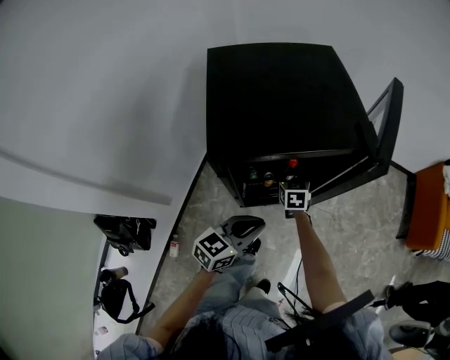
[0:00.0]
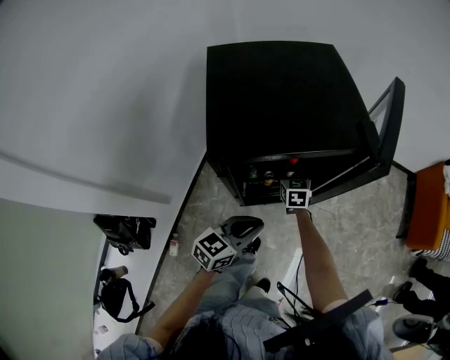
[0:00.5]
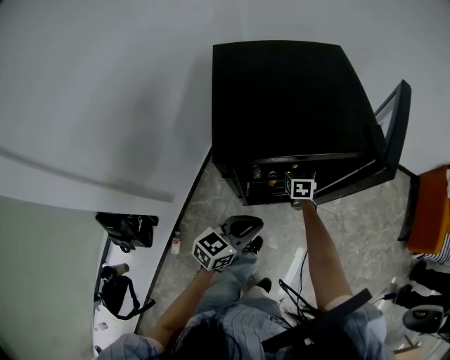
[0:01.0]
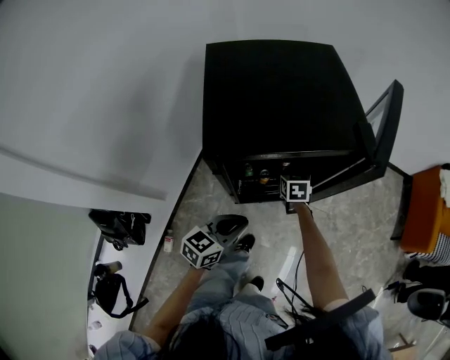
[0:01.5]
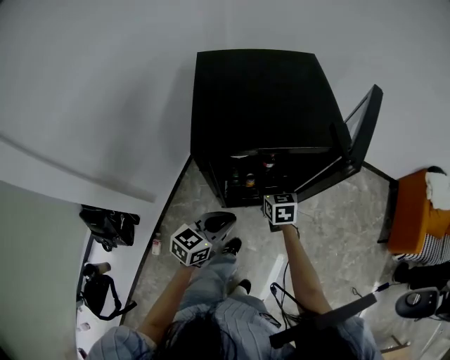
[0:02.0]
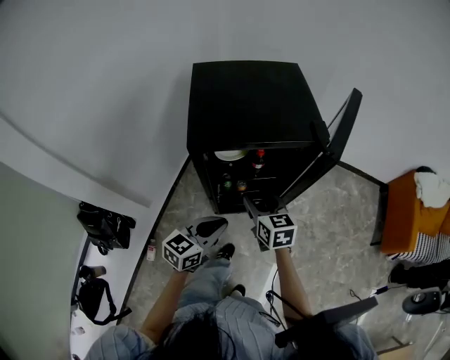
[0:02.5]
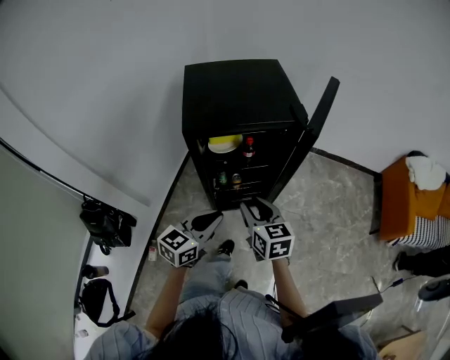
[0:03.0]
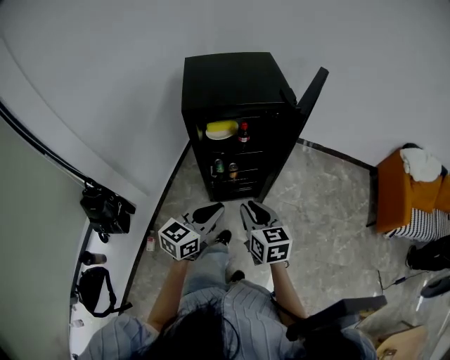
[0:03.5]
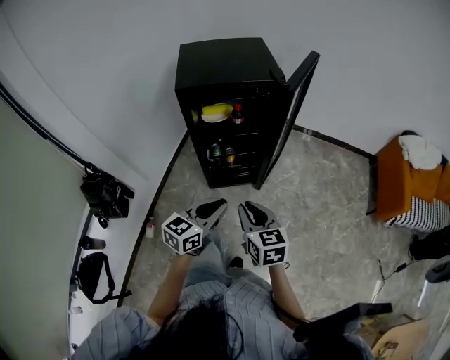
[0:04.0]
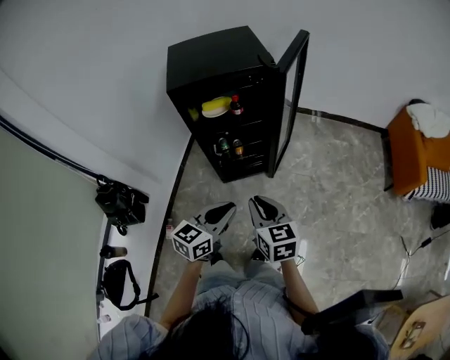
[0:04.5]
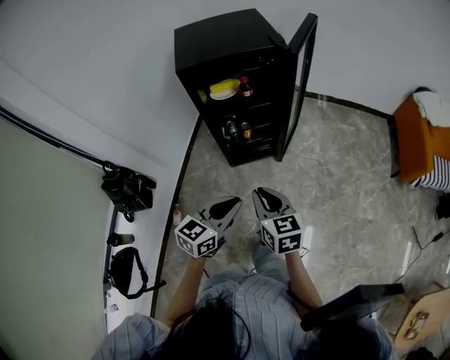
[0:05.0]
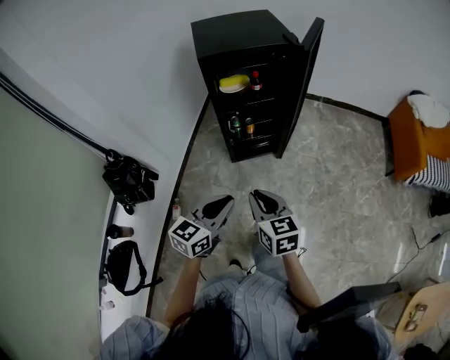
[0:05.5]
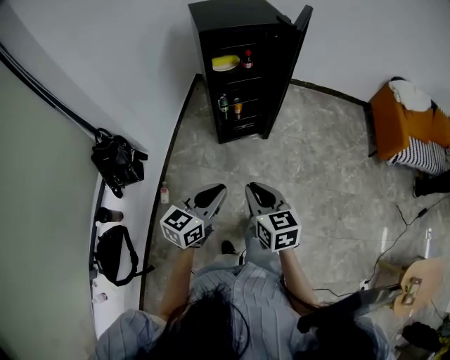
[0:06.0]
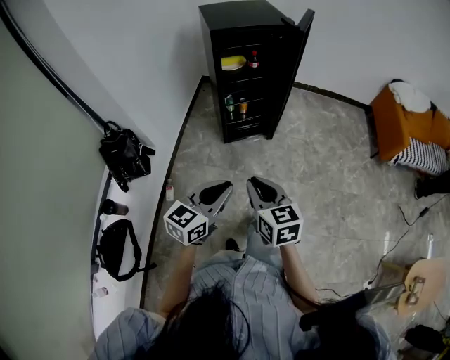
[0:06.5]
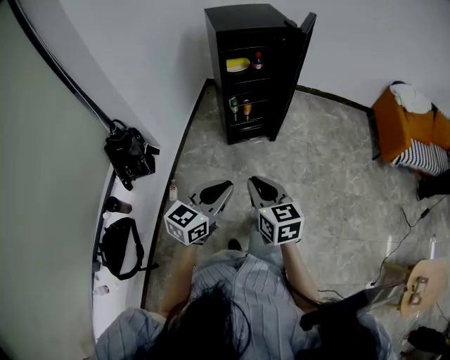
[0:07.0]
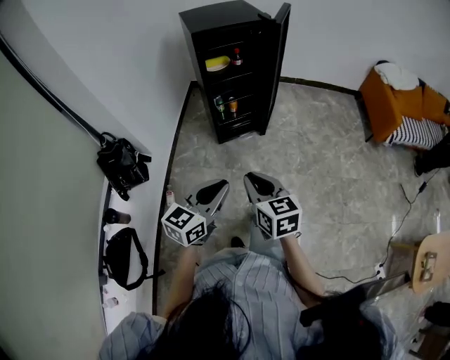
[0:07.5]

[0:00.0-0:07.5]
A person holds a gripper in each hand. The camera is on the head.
0:00.0 to 0:02.0: The right gripper shifts about 10 cm upward and backward.
0:02.0 to 0:04.0: The left gripper travels backward and to the right by about 25 cm, while the right gripper shifts approximately 35 cm backward, and closes its fingers.
0:04.0 to 0:05.5: Both grippers move backward and to the left, roughly 15 cm.
0:05.5 to 0:07.5: Both grippers travel together backward, about 15 cm.

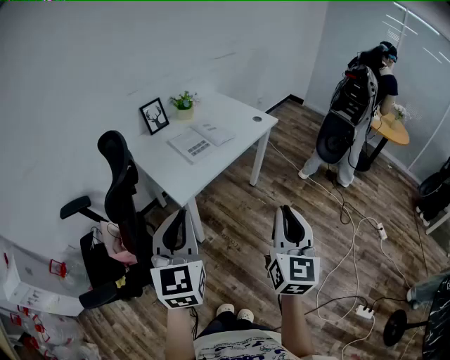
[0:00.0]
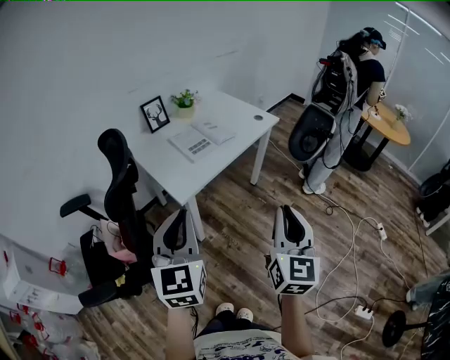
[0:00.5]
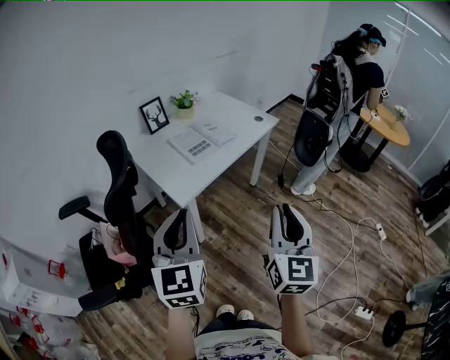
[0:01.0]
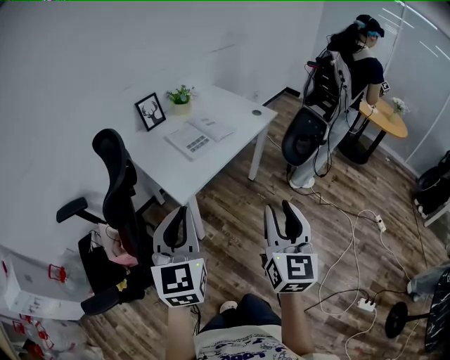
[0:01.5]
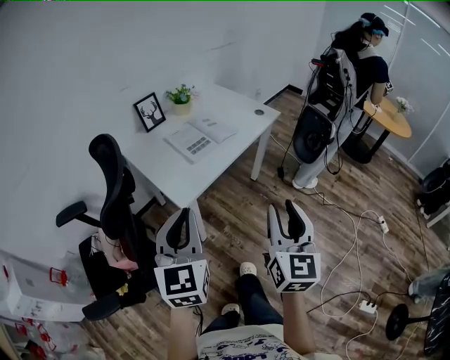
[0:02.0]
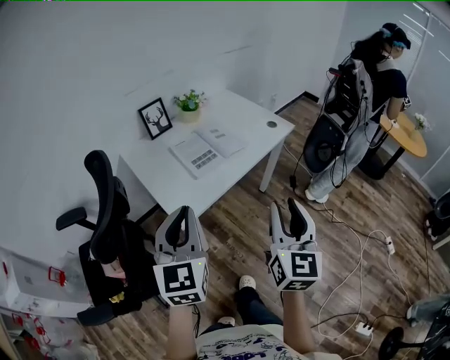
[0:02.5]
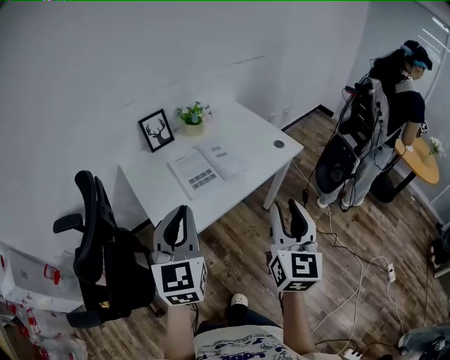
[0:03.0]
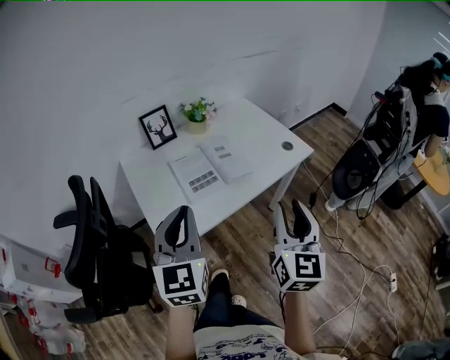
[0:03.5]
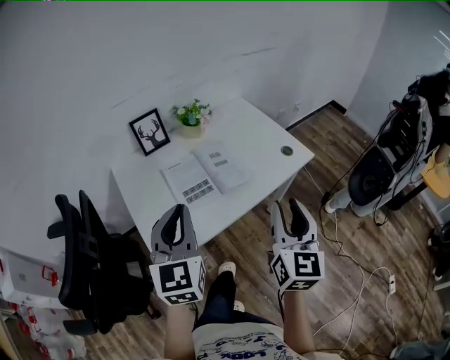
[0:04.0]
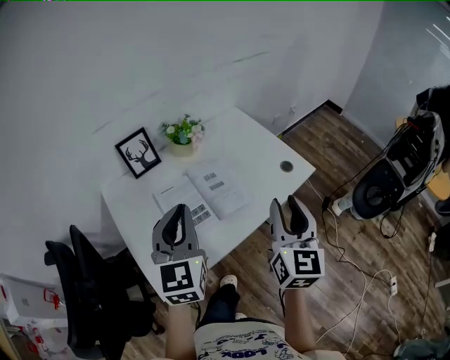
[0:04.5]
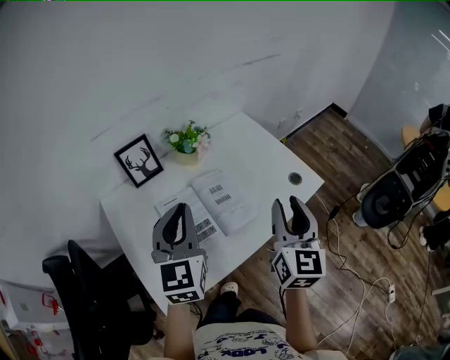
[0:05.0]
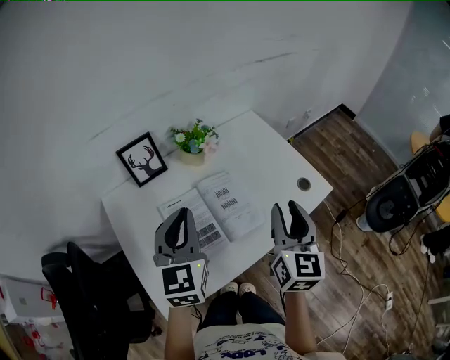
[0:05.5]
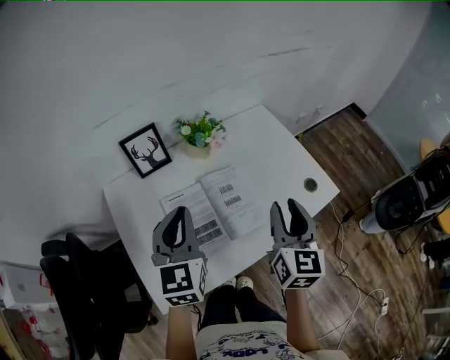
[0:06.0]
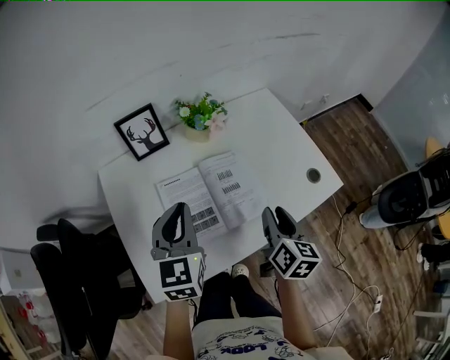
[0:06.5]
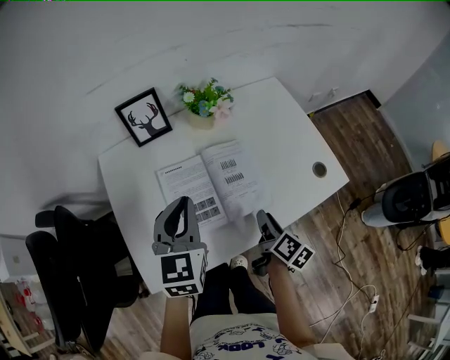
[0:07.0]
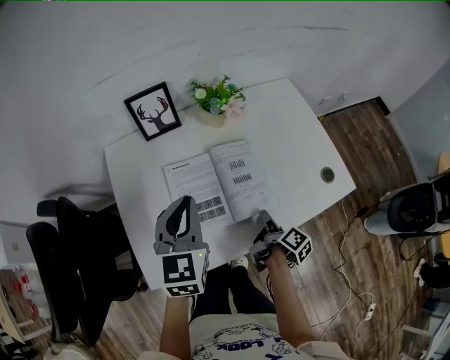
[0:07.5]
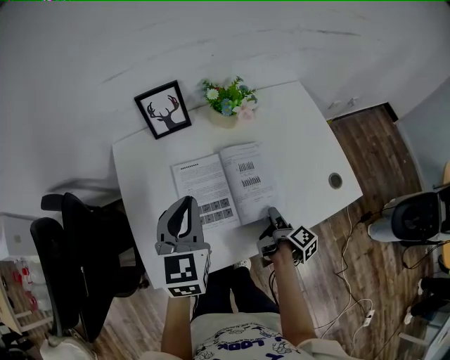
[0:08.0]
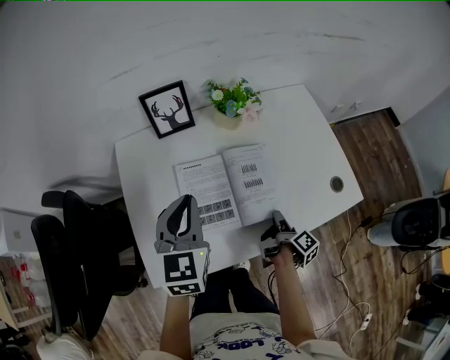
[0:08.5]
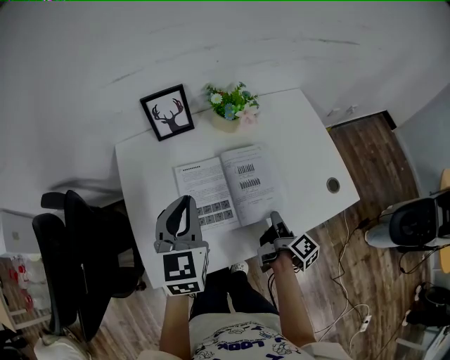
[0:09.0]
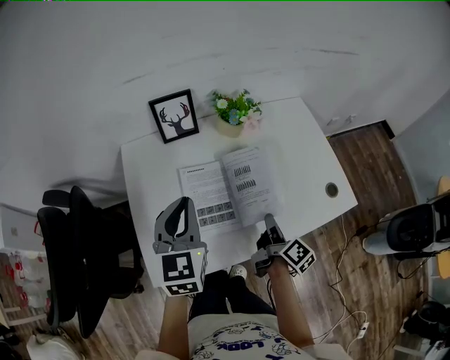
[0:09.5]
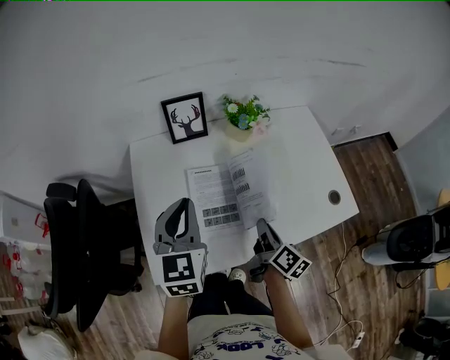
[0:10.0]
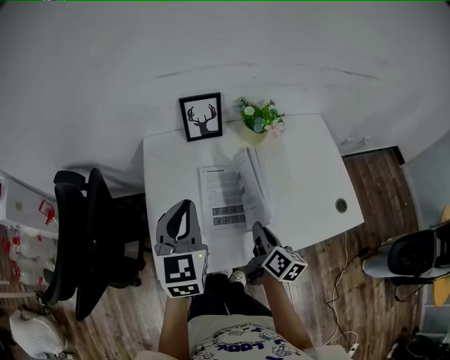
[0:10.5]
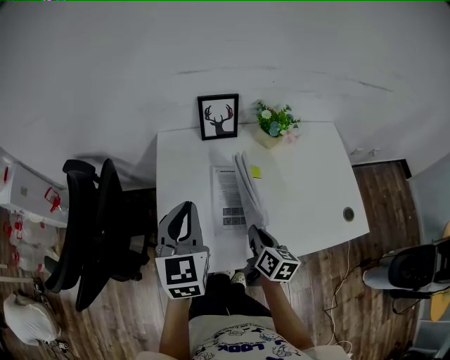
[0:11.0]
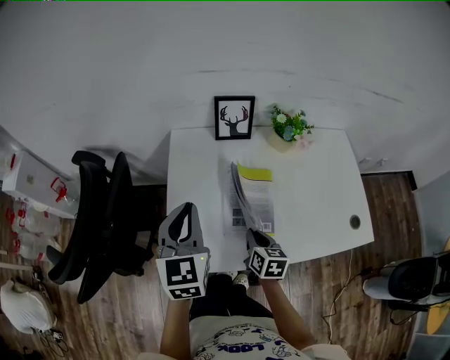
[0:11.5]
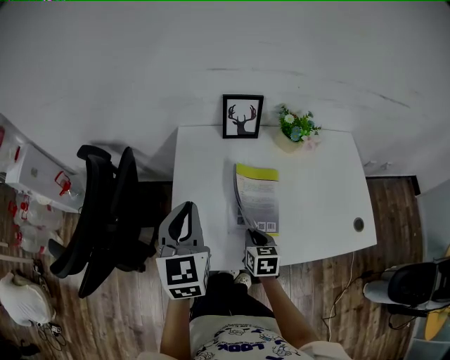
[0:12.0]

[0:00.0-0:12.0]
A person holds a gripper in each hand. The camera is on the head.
0:00.0 to 0:02.0: The two grippers go some 5 cm forward. The right gripper opens its fingers.
0:02.0 to 0:04.0: The grippers both shift forward by about 35 cm.
0:04.0 to 0:06.0: The grippers both shift forward by approximately 25 cm.
0:06.0 to 0:08.0: The left gripper is displaced downward by approximately 5 cm. Meanwhile the right gripper travels downward by roughly 30 cm, and rolls clockwise, seen from behind, by about 80 degrees.
0:08.0 to 0:10.0: The left gripper moves roughly 5 cm. The right gripper heads upward and to the left, covering some 15 cm, swivels some 40 degrees, and closes.
0:10.0 to 0:12.0: The left gripper is displaced to the left by approximately 10 cm, while the right gripper goes roughly 15 cm to the left and downward, and rolls counterclockwise, seen from behind, by some 50 degrees.

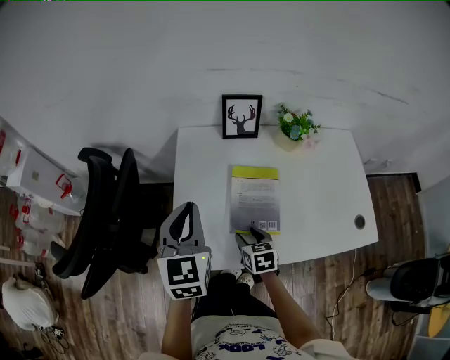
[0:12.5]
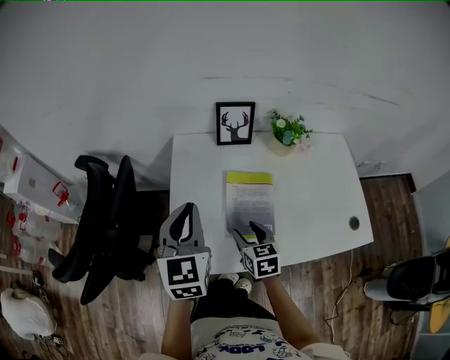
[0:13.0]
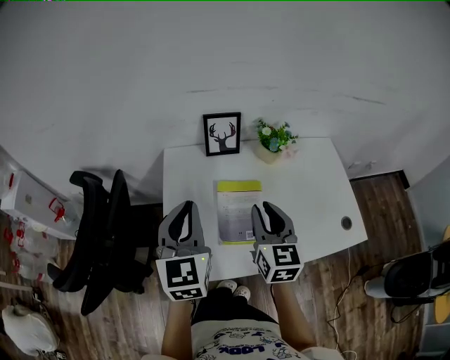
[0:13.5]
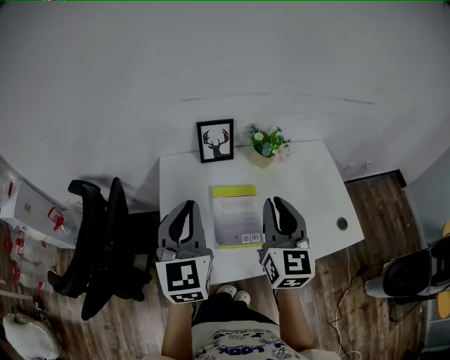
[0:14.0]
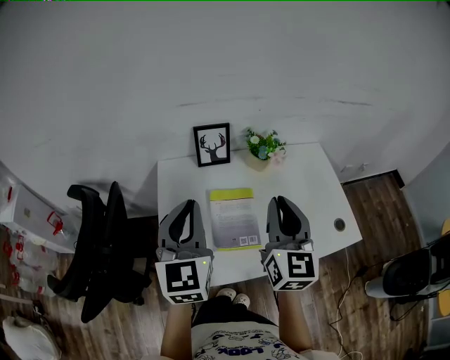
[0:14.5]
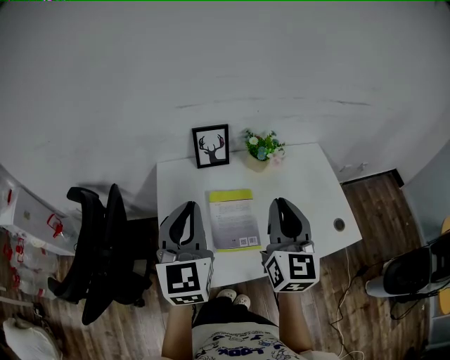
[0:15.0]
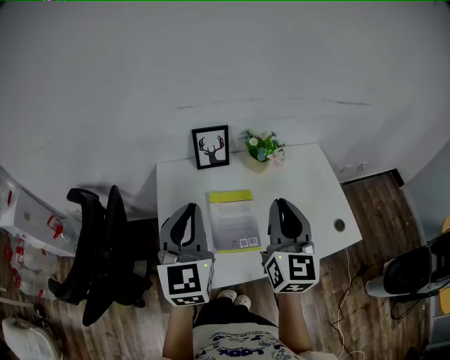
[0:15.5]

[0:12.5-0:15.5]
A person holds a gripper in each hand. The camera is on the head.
0:12.5 to 0:14.0: The left gripper moves upward and to the right, roughly 10 cm. Meanwhile the right gripper heads upward, covering roughly 30 cm, tips its fingers upward by about 40 degrees, and closes up.
0:14.0 to 0:15.5: The grippers make only small movements.

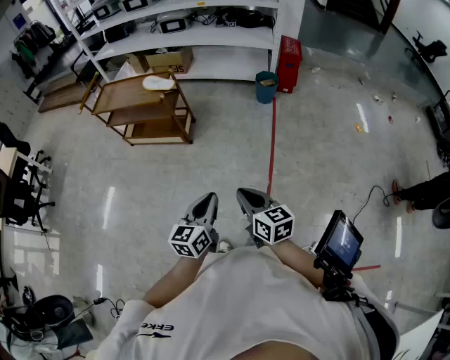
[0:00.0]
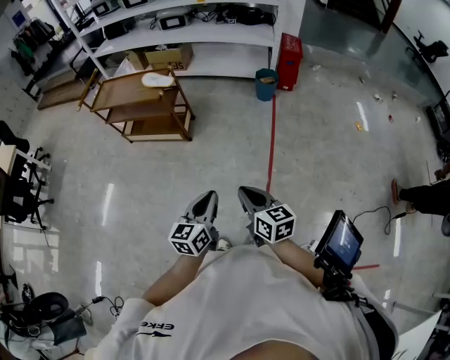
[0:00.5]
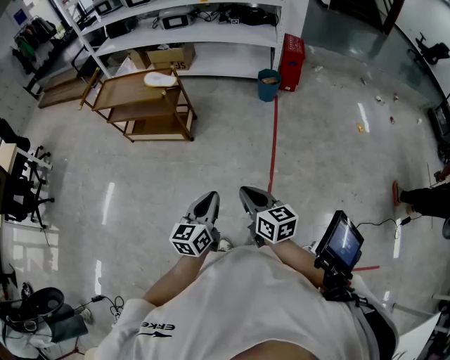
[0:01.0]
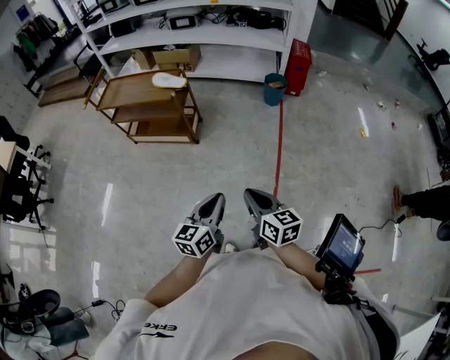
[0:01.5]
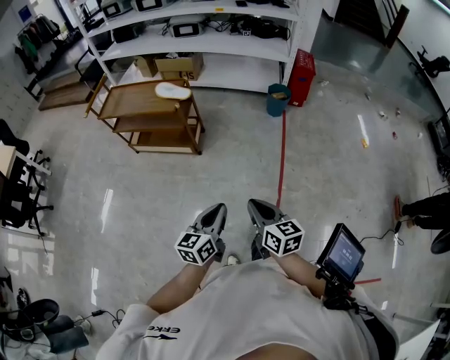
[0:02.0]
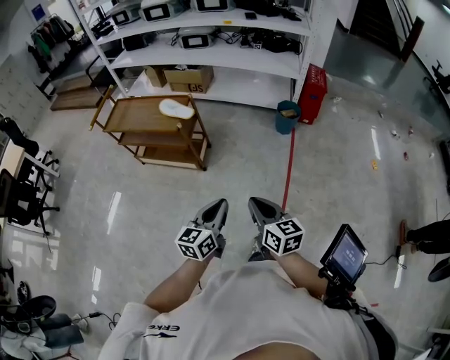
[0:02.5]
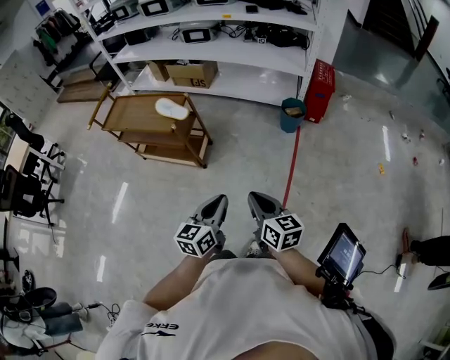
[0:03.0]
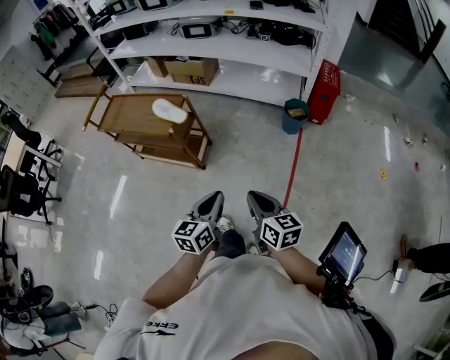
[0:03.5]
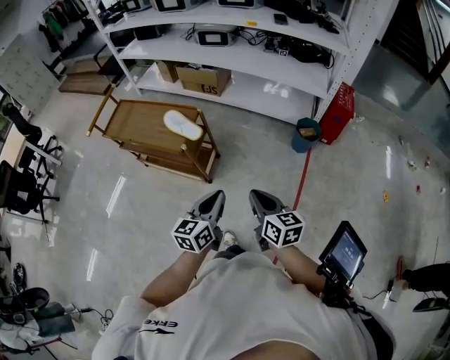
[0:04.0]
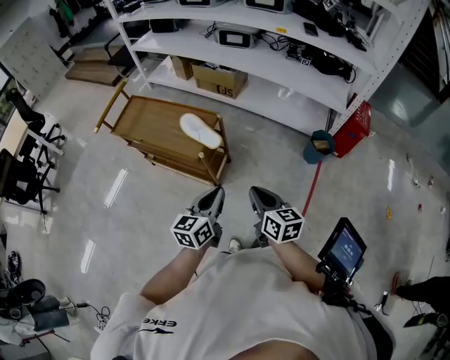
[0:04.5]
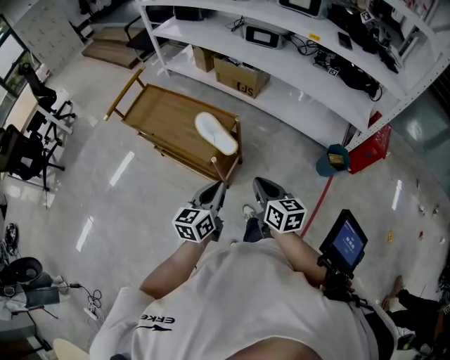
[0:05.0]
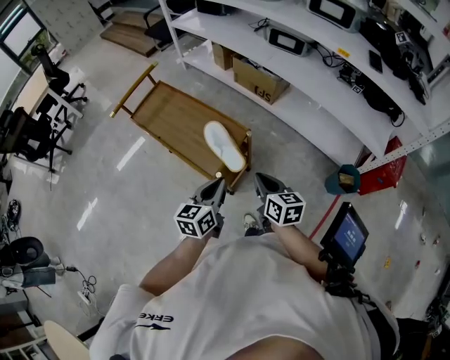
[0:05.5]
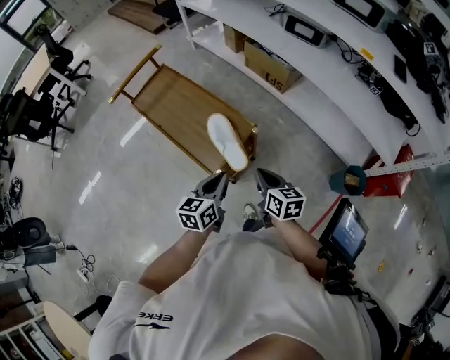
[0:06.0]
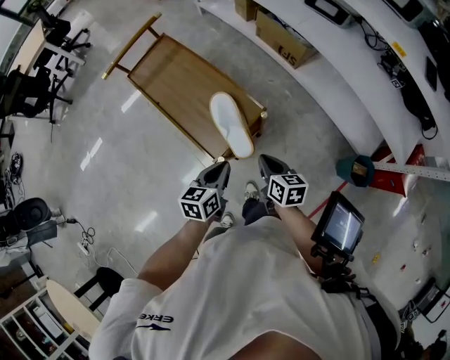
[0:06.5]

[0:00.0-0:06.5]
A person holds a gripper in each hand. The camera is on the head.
0:00.0 to 0:02.0: Both grippers move to the left and forward, about 10 cm.
0:02.0 to 0:04.5: The two grippers travel together, forward, roughly 50 cm.
0:04.5 to 0:06.5: The grippers both shift forward and downward by about 30 cm. The right gripper rotates approximately 30 degrees; the left gripper changes its angle by about 30 degrees.
